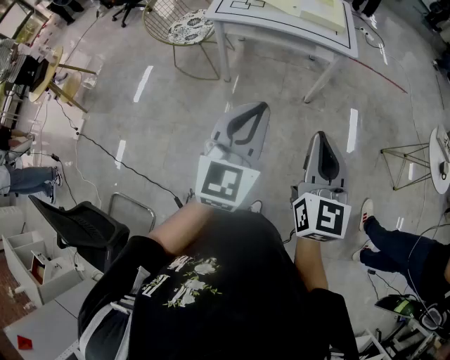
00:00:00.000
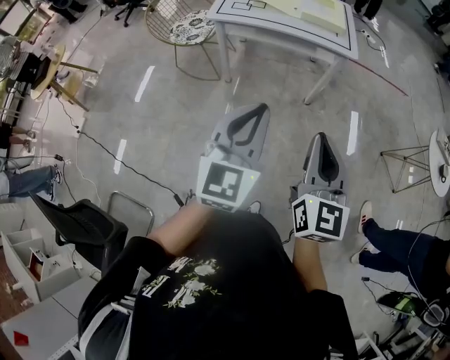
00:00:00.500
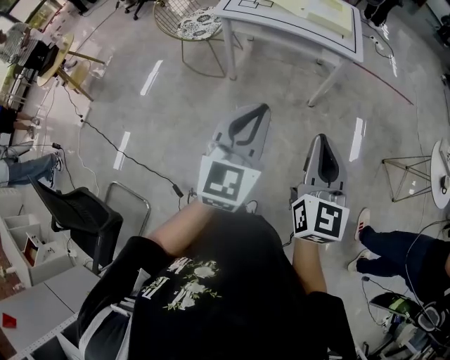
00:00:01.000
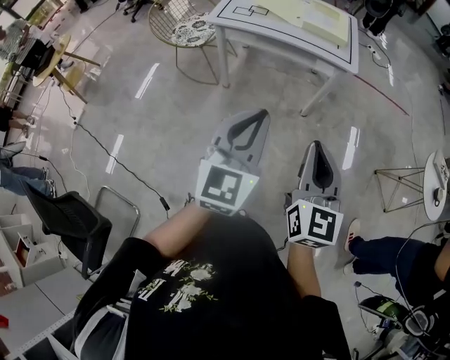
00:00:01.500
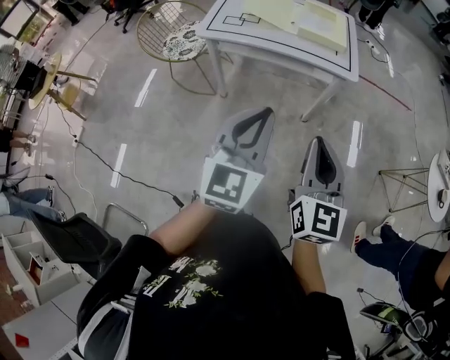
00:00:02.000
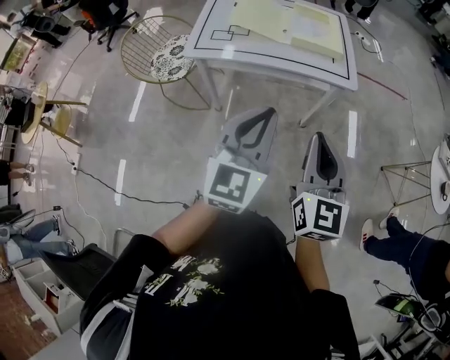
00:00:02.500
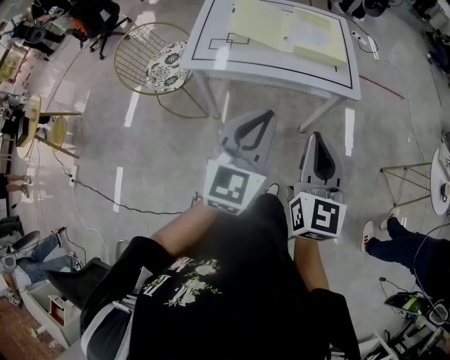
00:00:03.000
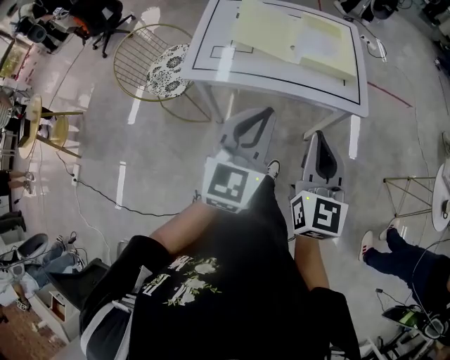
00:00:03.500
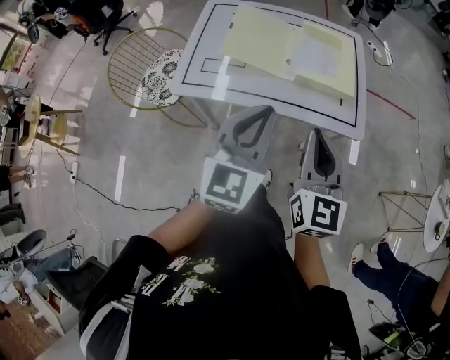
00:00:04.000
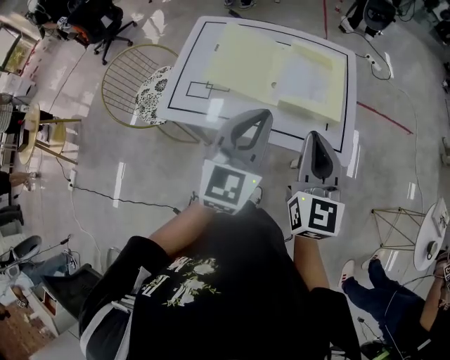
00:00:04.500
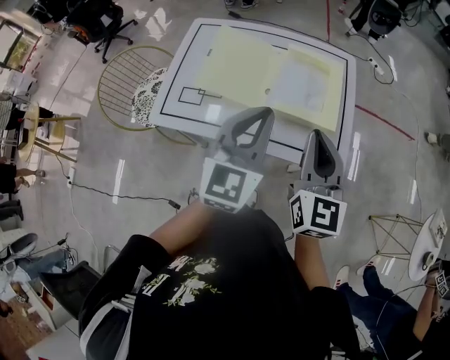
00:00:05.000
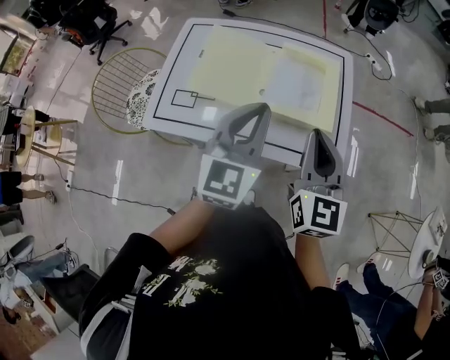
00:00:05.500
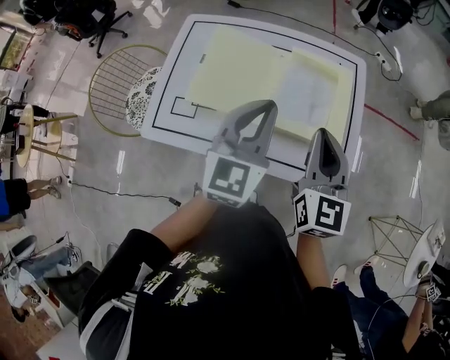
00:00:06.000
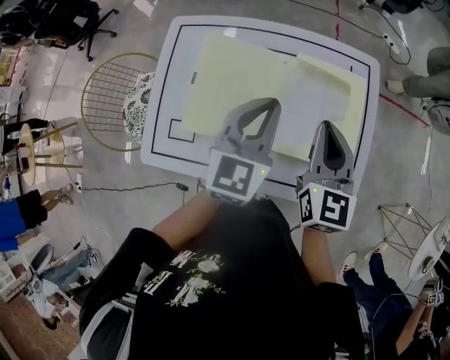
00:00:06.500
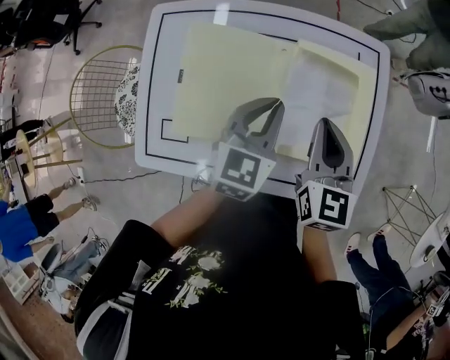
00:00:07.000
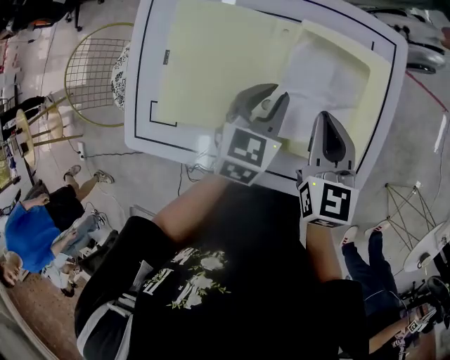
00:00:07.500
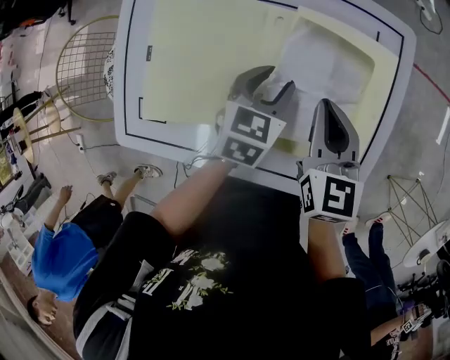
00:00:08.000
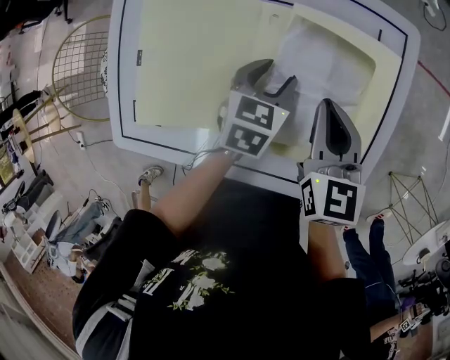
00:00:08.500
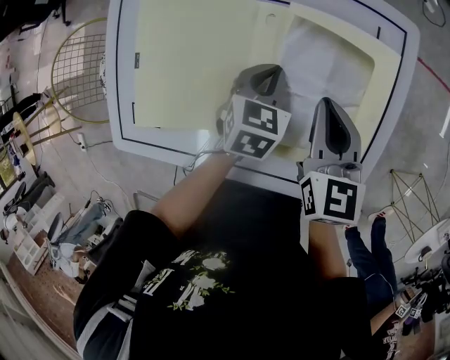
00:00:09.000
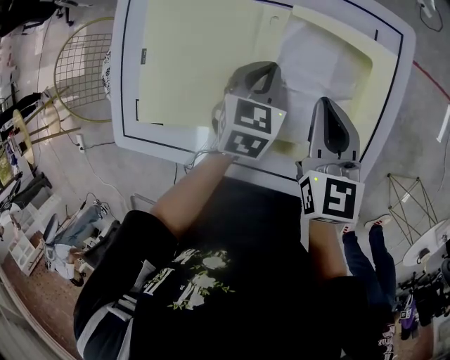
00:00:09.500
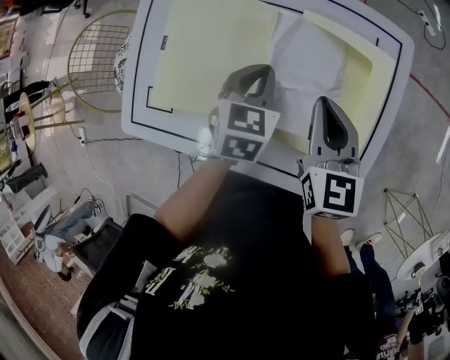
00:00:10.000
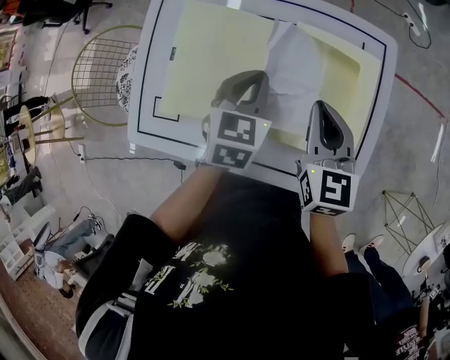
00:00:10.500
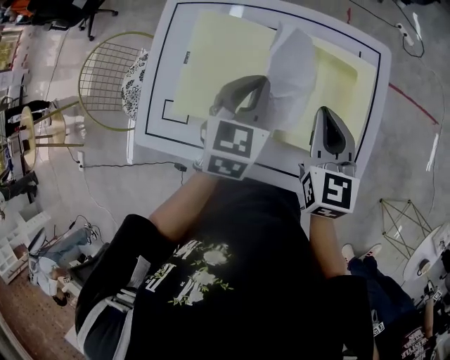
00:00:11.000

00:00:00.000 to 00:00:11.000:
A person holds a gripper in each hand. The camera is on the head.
00:00:00.000 to 00:00:02.000: The grippers both shift forward by some 15 cm.
00:00:02.000 to 00:00:03.500: The right gripper is displaced forward and to the left by approximately 25 cm, while the left gripper heads forward, covering some 20 cm.
00:00:03.500 to 00:00:05.500: The two grippers go about 25 cm forward.
00:00:05.500 to 00:00:07.500: The left gripper moves downward and forward, some 30 cm, and angles its fingers downward, by some 30 degrees. Meanwhile the right gripper travels forward and downward by about 25 cm, and swivels some 20 degrees.
00:00:07.500 to 00:00:09.000: The left gripper goes some 5 cm downward, and opens, then closes again.
00:00:09.000 to 00:00:11.000: The right gripper travels upward by some 10 cm, while the left gripper is displaced upward and to the left by roughly 15 cm.

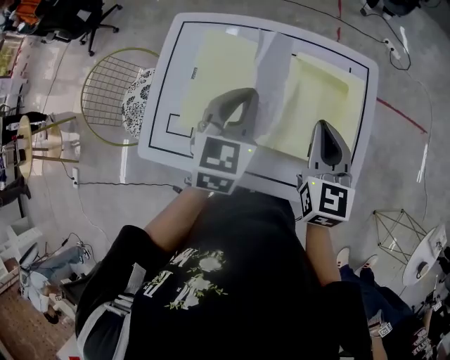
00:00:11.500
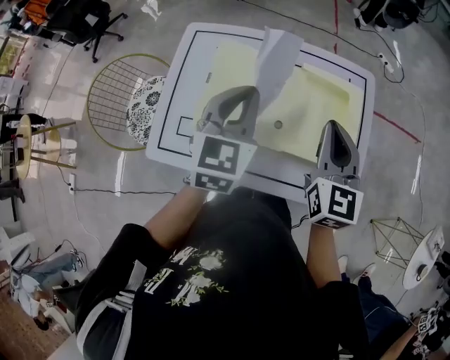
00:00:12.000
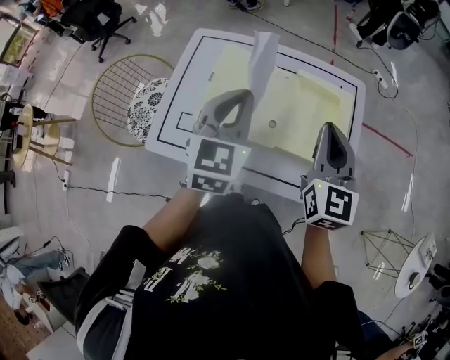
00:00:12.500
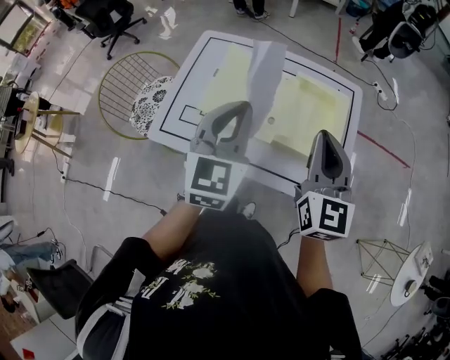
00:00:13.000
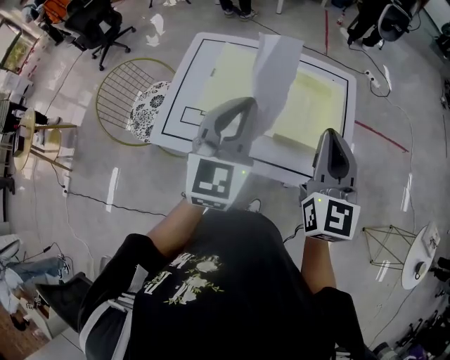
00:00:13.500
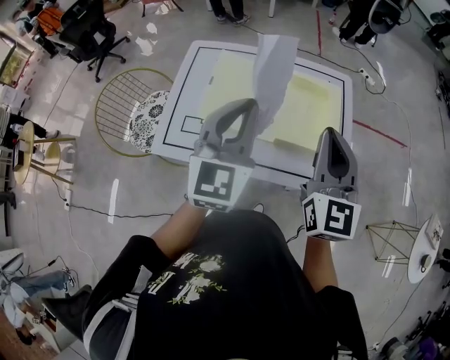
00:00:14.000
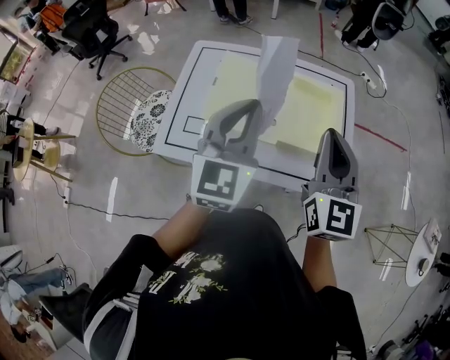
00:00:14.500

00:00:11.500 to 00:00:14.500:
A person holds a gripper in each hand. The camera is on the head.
00:00:11.500 to 00:00:13.000: The right gripper heads upward and backward, covering some 15 cm. The left gripper goes roughly 15 cm backward and upward.
00:00:13.000 to 00:00:14.500: The grippers move only a little.

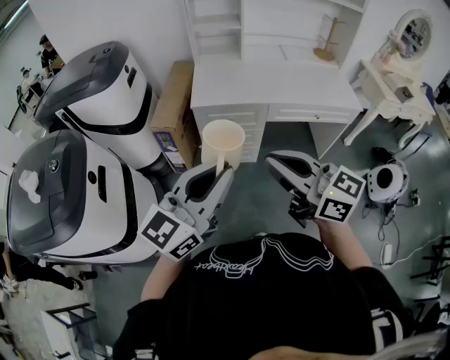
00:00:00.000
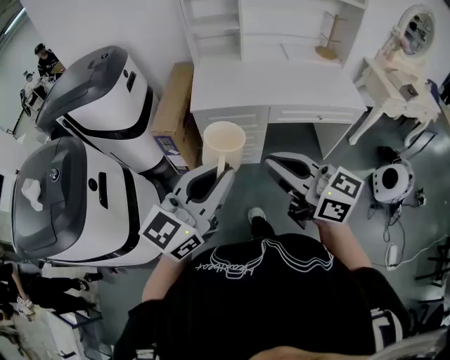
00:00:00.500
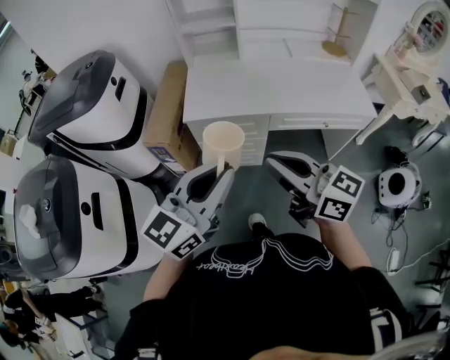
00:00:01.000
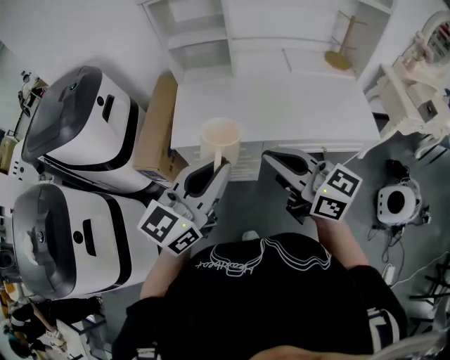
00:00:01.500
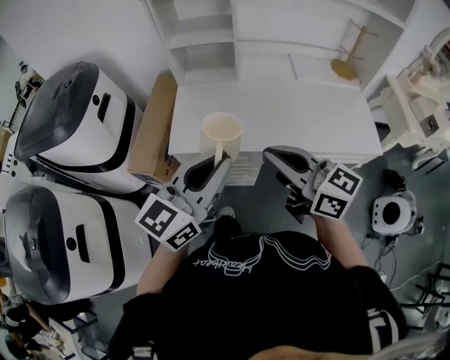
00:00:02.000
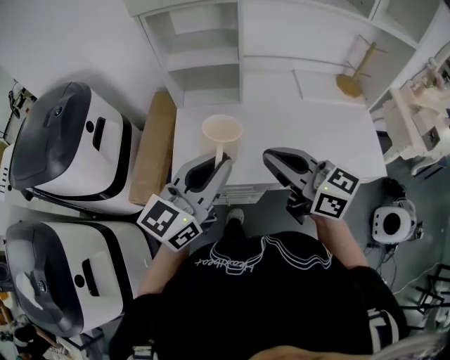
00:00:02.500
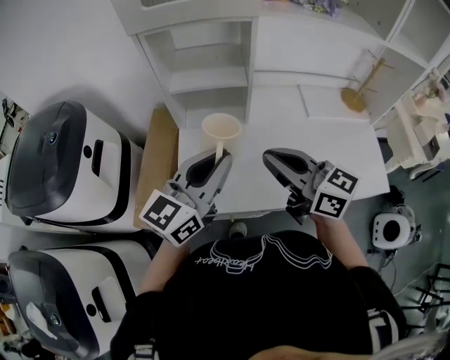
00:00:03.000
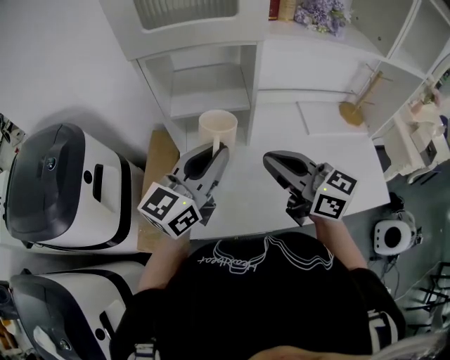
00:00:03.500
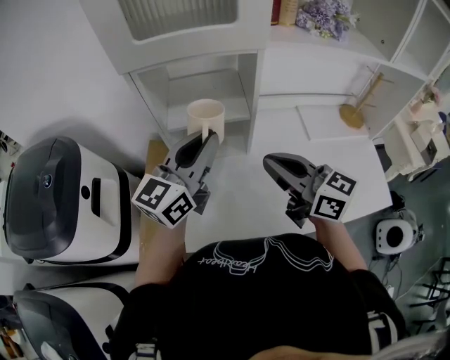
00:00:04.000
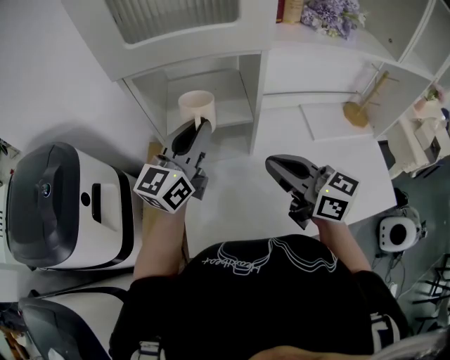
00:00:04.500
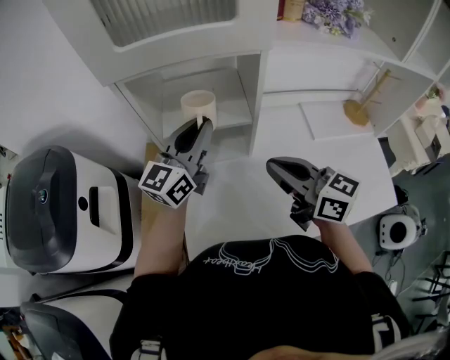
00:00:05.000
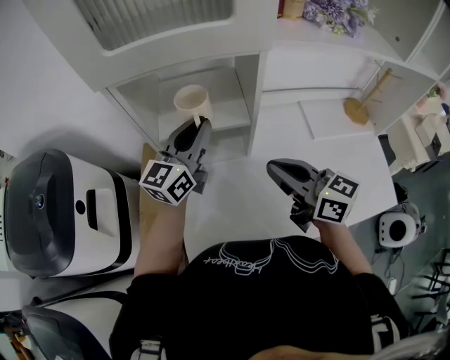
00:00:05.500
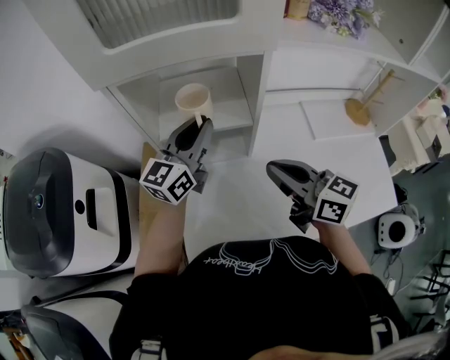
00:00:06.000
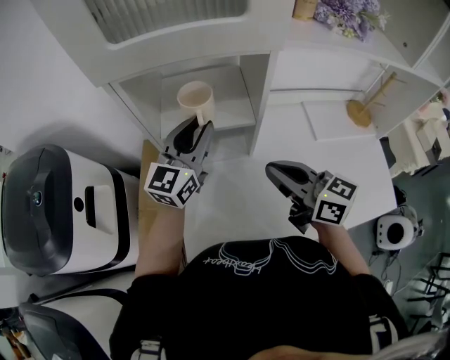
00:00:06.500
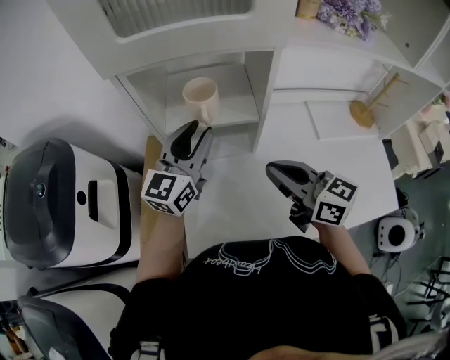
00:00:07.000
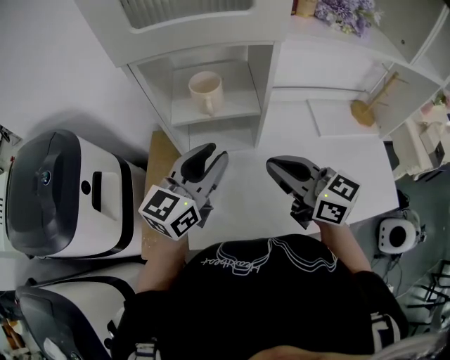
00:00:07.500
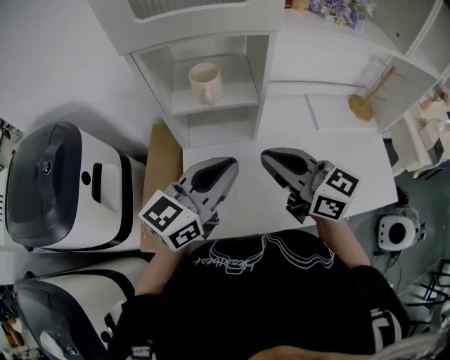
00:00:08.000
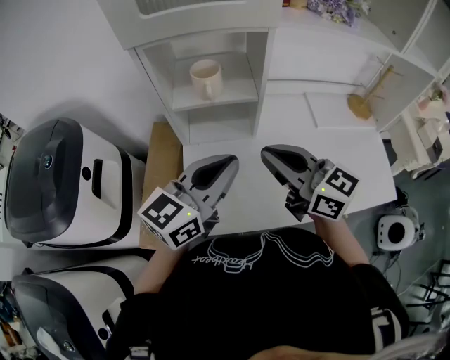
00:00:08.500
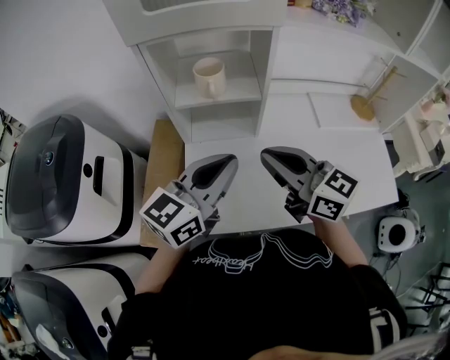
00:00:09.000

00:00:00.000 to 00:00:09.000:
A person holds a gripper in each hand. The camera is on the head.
00:00:00.000 to 00:00:02.000: Both grippers travel together forward, roughly 35 cm.
00:00:02.000 to 00:00:04.500: The grippers both shift forward by approximately 40 cm.
00:00:04.500 to 00:00:07.000: The left gripper is displaced downward by about 5 cm, and opens.
00:00:07.000 to 00:00:09.000: The left gripper shifts some 15 cm backward, and closes. Meanwhile the right gripper heads backward, covering roughly 5 cm.

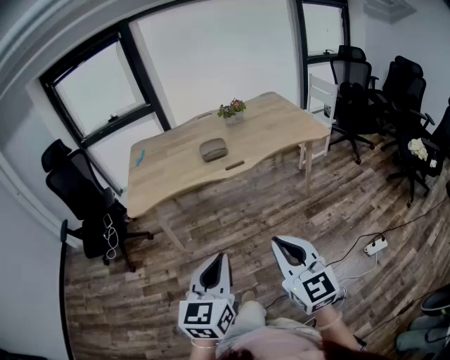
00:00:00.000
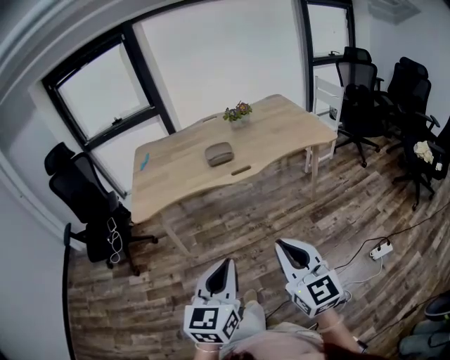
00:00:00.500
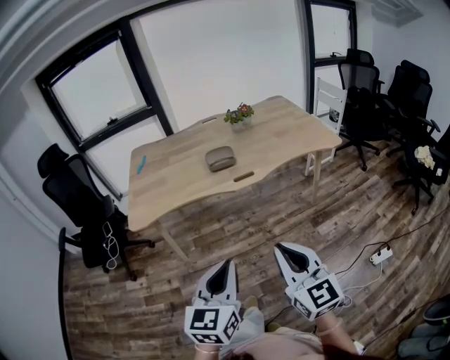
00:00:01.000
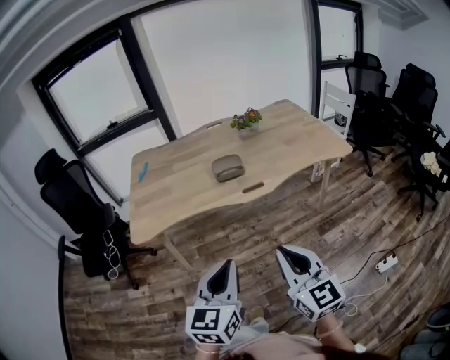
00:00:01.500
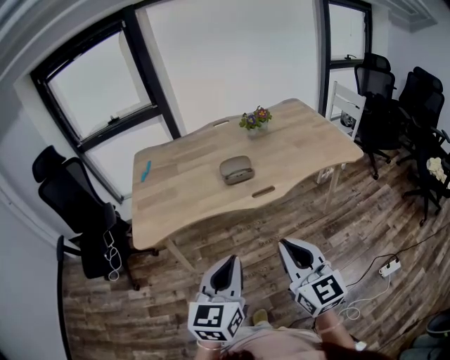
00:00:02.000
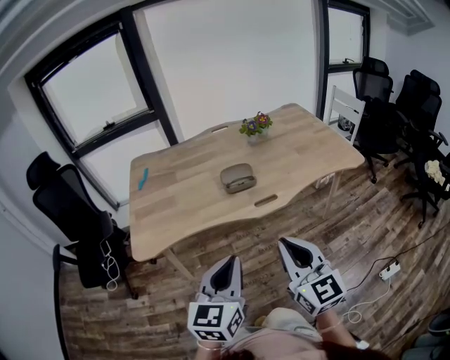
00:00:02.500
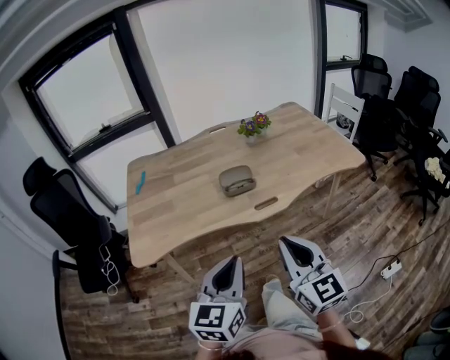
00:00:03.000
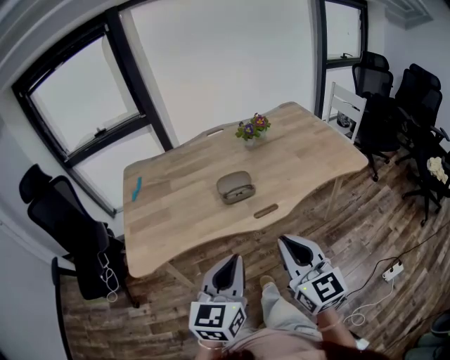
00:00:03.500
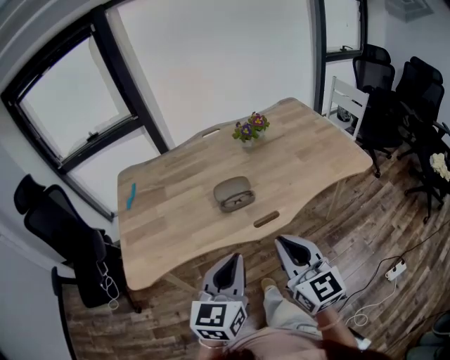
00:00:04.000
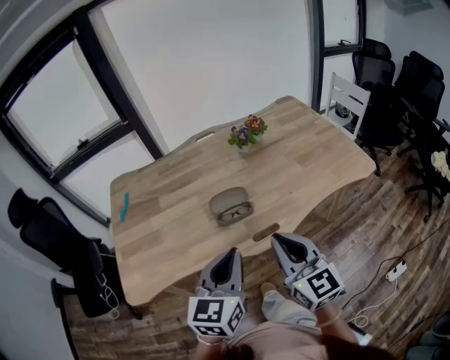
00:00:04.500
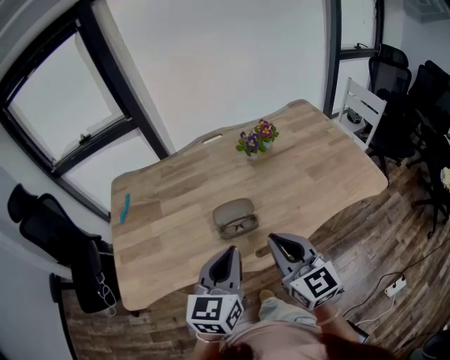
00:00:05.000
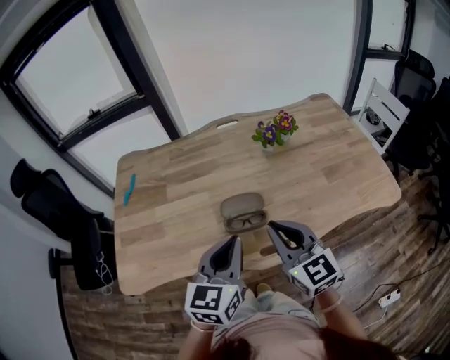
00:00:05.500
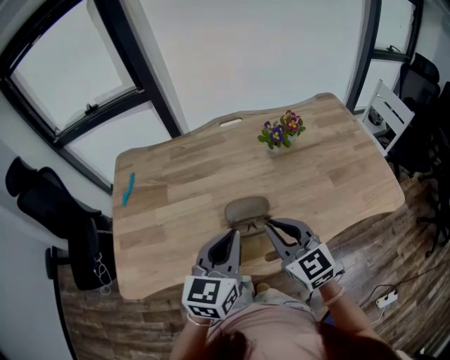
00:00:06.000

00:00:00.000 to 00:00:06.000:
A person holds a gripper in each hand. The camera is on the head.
00:00:00.000 to 00:00:02.000: Both grippers travel together forward, roughly 25 cm.
00:00:02.000 to 00:00:04.000: The two grippers go some 20 cm forward.
00:00:04.000 to 00:00:06.000: Both grippers move forward, approximately 25 cm. The right gripper turns by about 20 degrees.
